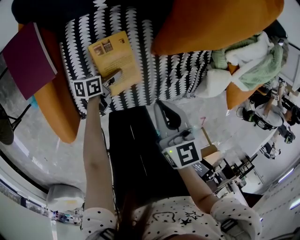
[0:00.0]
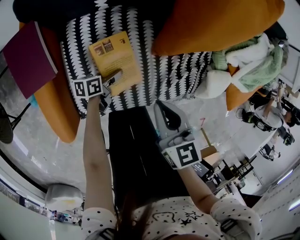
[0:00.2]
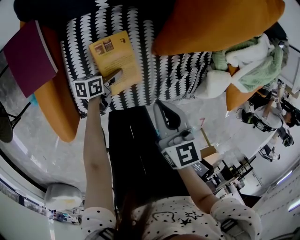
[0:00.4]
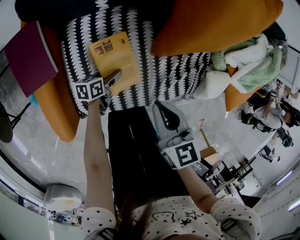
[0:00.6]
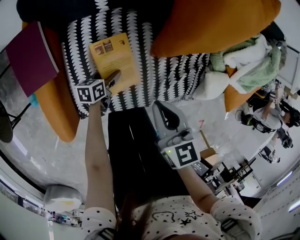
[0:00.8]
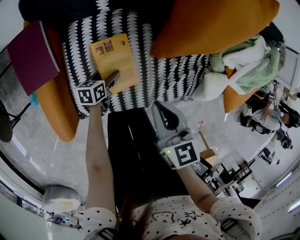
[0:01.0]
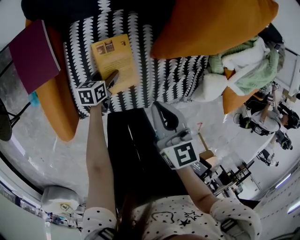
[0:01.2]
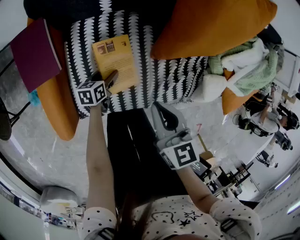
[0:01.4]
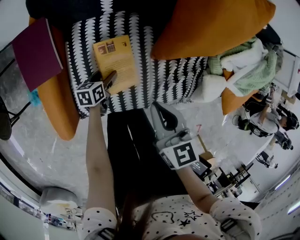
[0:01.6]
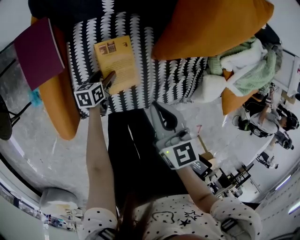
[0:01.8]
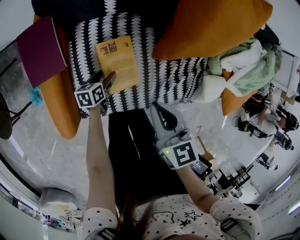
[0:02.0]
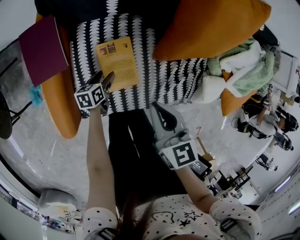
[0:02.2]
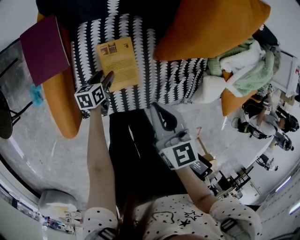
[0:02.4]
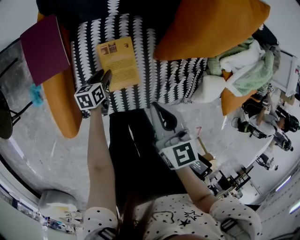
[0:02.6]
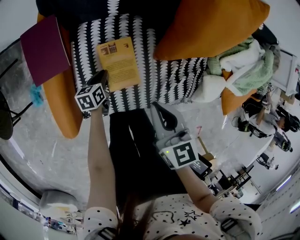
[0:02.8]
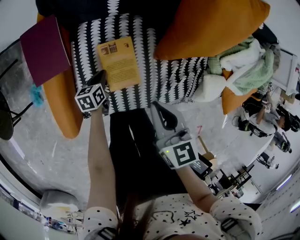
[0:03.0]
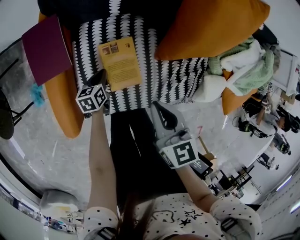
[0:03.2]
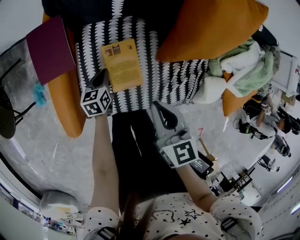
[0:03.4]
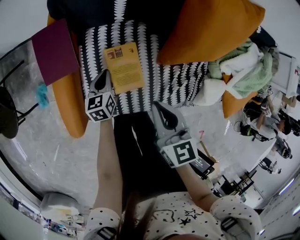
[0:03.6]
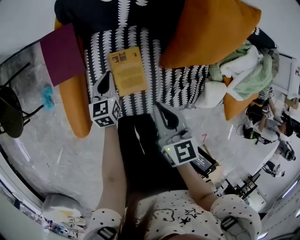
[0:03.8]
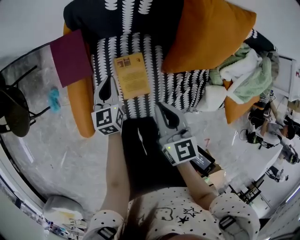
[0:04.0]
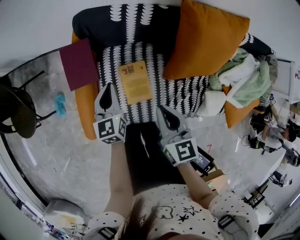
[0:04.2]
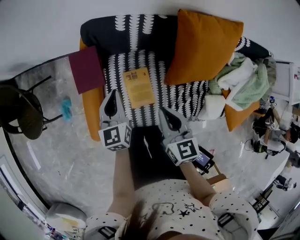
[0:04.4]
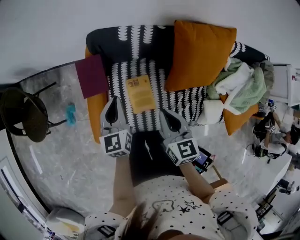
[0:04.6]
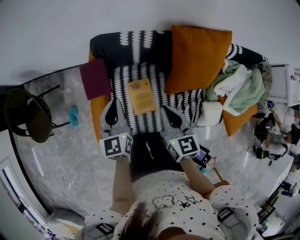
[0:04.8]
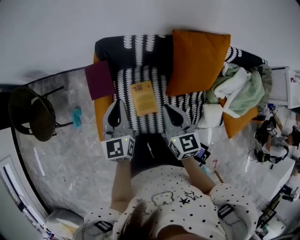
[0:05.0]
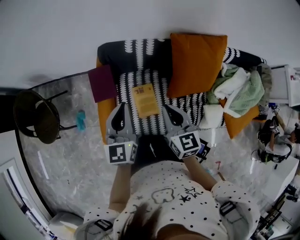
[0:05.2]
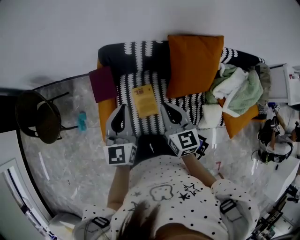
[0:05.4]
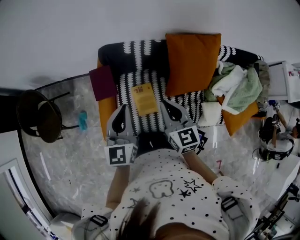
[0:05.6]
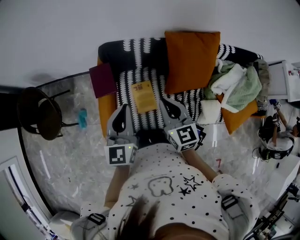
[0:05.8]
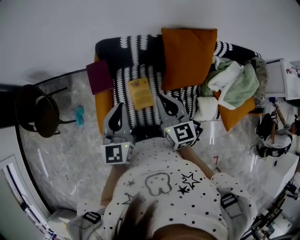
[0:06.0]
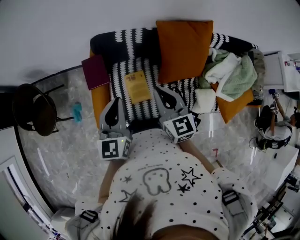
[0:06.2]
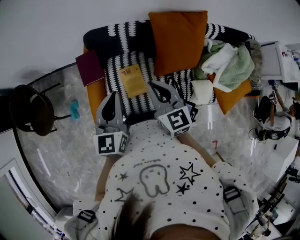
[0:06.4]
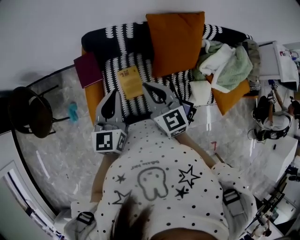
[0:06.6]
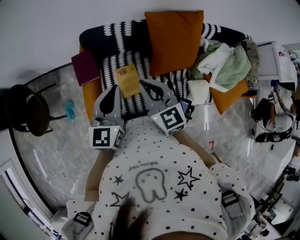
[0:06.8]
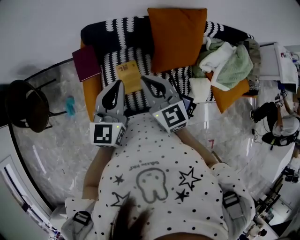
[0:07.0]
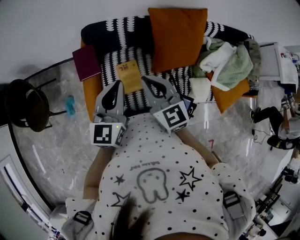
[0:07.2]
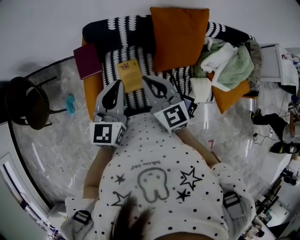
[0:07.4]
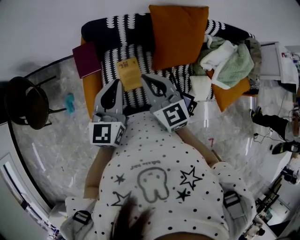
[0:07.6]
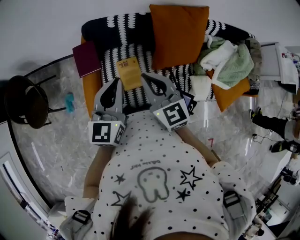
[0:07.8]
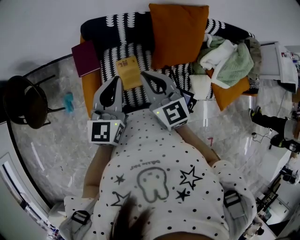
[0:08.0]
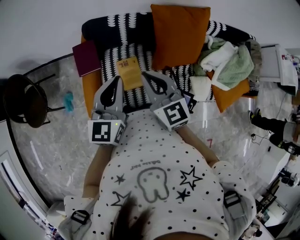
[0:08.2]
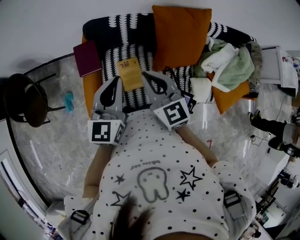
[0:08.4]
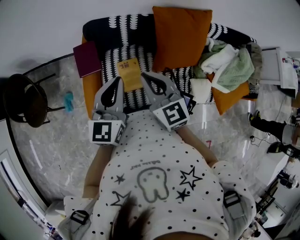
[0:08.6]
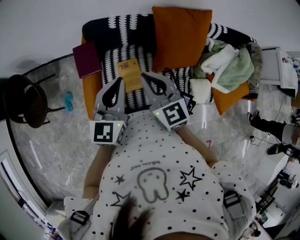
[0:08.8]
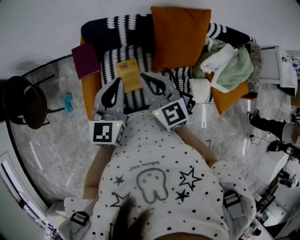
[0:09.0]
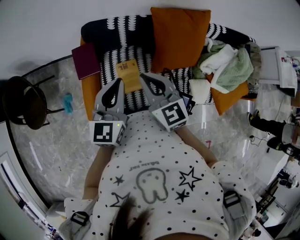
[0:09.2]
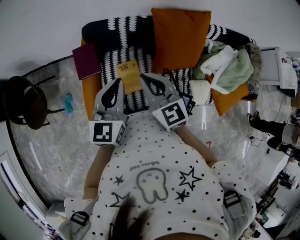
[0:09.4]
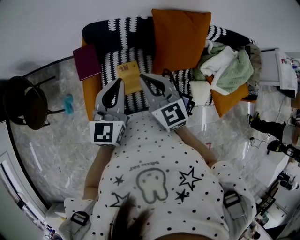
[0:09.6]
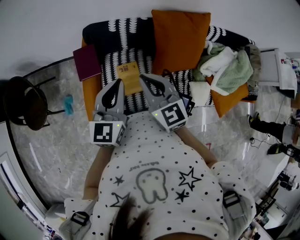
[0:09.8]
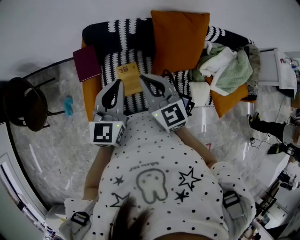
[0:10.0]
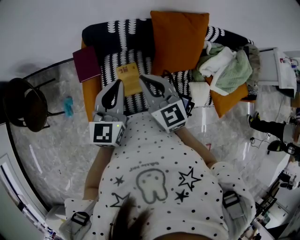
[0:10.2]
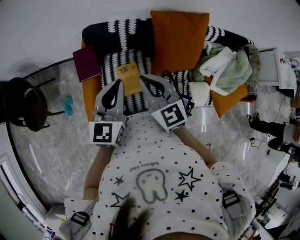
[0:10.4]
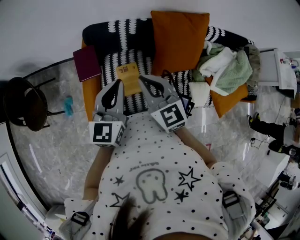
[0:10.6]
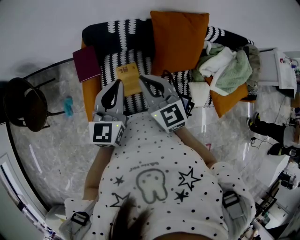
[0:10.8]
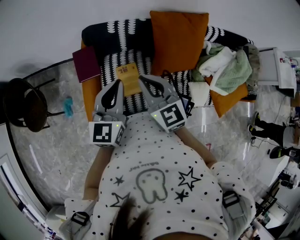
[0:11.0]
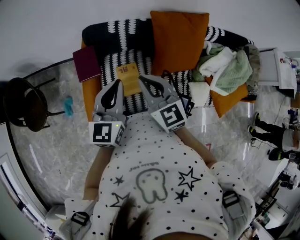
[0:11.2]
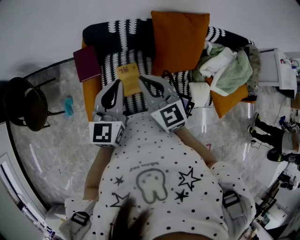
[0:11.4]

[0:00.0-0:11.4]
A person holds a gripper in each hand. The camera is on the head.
0:00.0 to 0:01.4: The left gripper rotates approximately 20 degrees, and opens its fingers.
0:01.4 to 0:02.8: The left gripper closes.
0:02.8 to 0:04.2: The right gripper moves upward, approximately 10 cm. Meanwhile the left gripper heads upward, covering approximately 25 cm, and changes its angle by about 40 degrees.
0:04.2 to 0:05.6: The left gripper moves upward, some 25 cm, and turns by about 20 degrees; the right gripper heads upward, covering roughly 15 cm.
0:05.6 to 0:07.2: The left gripper moves some 5 cm.
0:07.2 to 0:08.6: Both grippers stay put.
0:08.6 to 0:11.4: The two grippers keep their place.

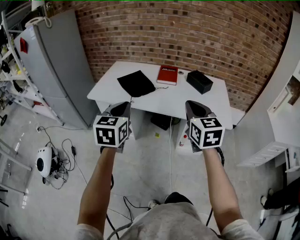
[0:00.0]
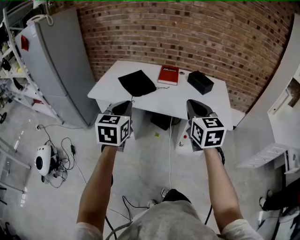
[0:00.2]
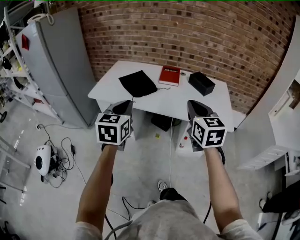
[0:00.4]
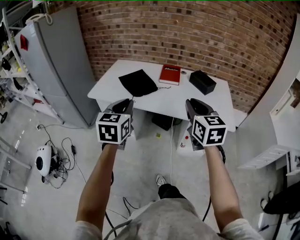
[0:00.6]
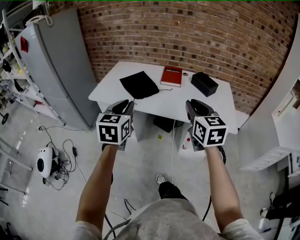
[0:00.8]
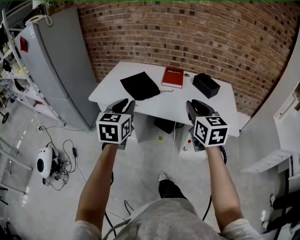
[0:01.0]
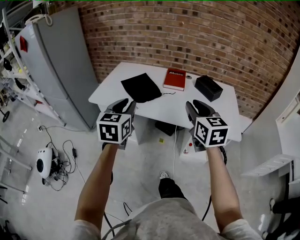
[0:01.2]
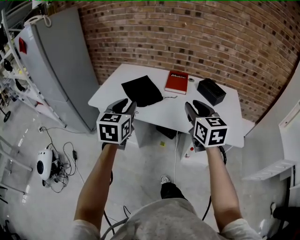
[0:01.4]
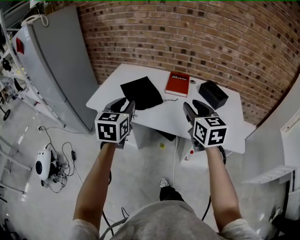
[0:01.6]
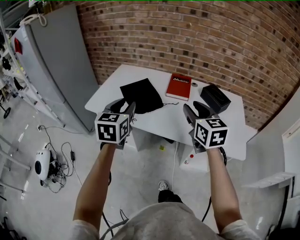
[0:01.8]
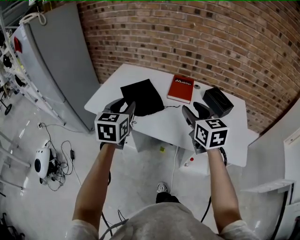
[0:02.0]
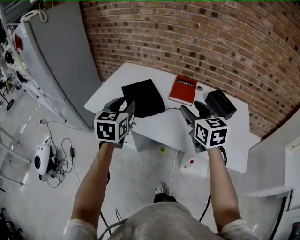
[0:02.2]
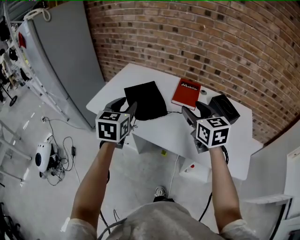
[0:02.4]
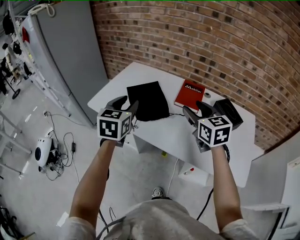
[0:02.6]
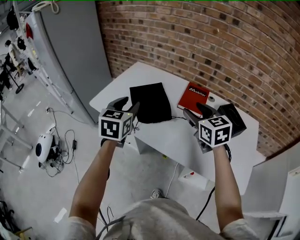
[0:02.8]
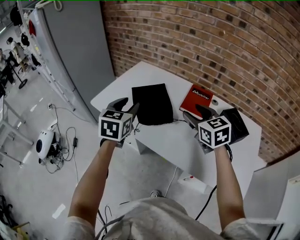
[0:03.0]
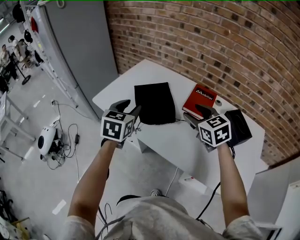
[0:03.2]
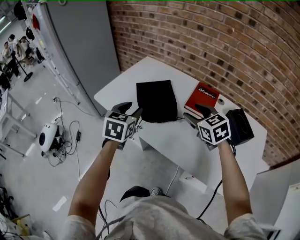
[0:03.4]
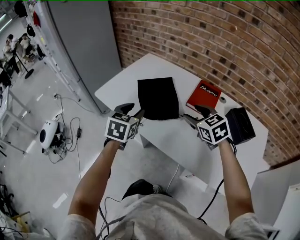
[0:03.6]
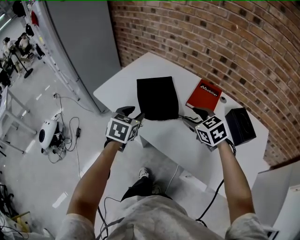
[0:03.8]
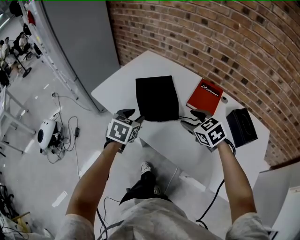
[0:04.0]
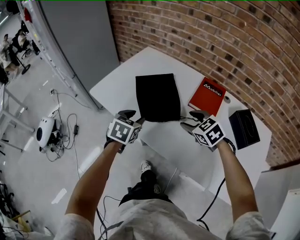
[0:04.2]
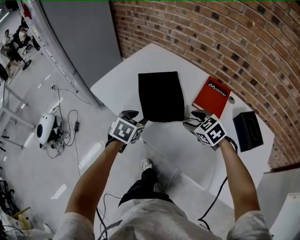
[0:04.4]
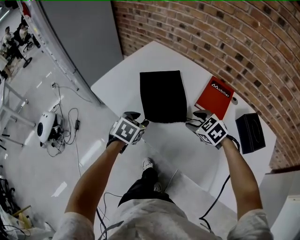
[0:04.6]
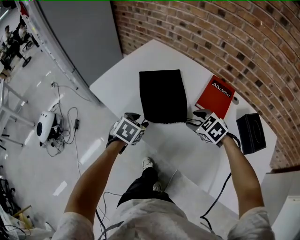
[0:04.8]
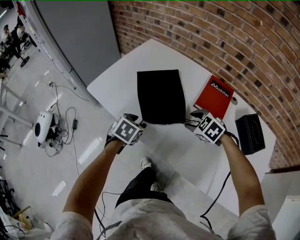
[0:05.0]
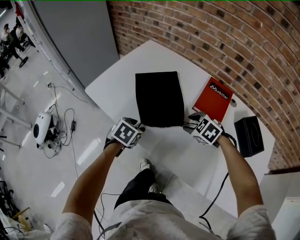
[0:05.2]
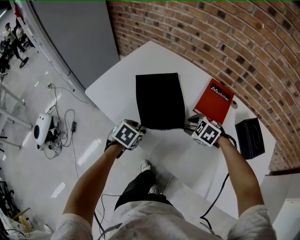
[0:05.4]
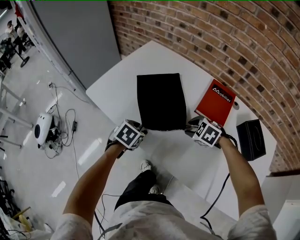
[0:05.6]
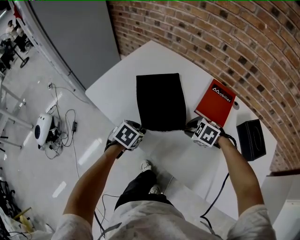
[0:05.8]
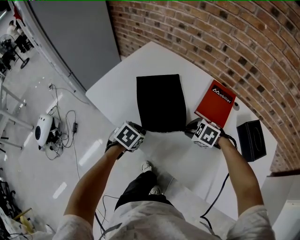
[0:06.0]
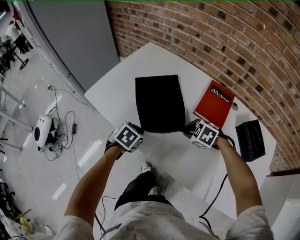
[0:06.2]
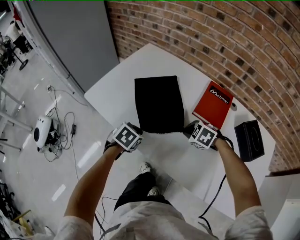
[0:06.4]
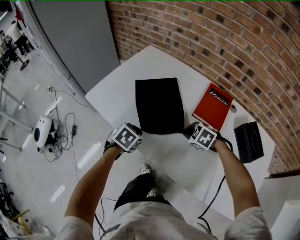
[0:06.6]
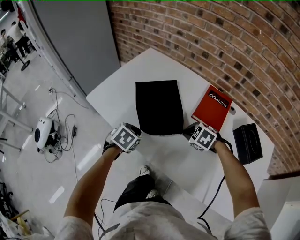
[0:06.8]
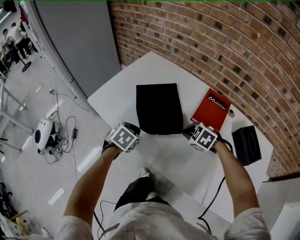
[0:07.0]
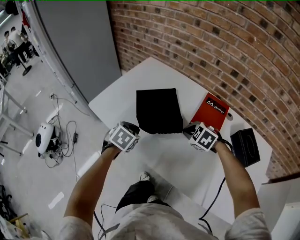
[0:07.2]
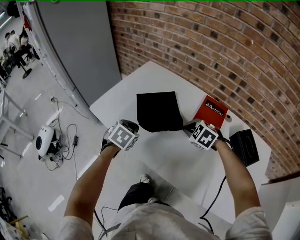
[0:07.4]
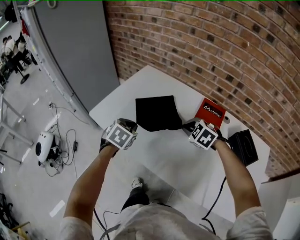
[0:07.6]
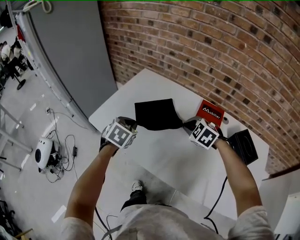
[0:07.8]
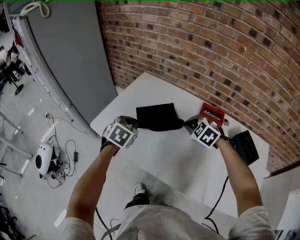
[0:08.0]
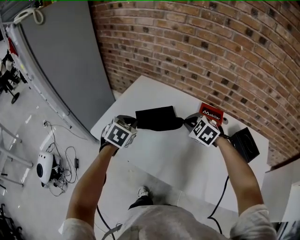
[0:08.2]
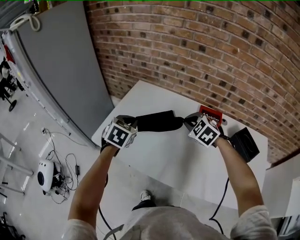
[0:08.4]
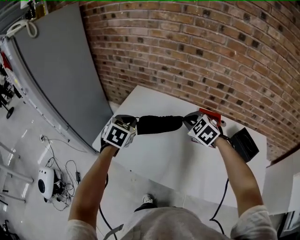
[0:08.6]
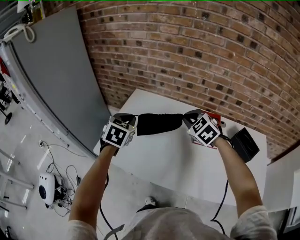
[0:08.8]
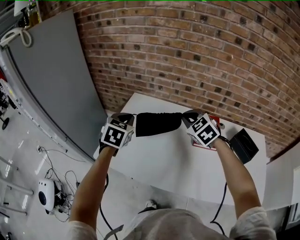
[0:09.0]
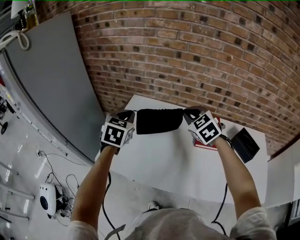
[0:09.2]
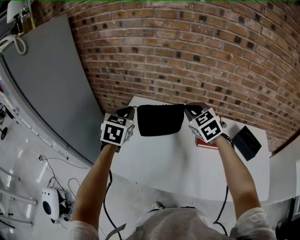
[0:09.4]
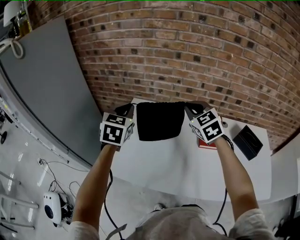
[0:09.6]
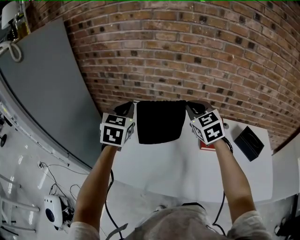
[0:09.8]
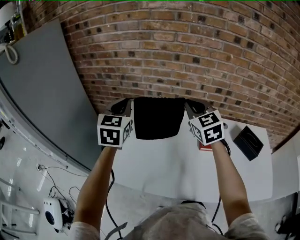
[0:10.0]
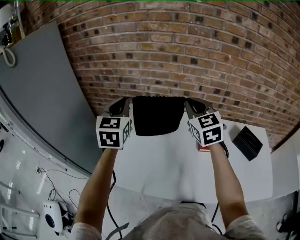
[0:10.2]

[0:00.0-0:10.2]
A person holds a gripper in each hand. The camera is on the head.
0:00.0 to 0:01.4: Both grippers travel together forward, roughly 15 cm. The right gripper opens its fingers, while the left gripper opens.
0:01.4 to 0:03.0: The two grippers go approximately 20 cm forward. The right gripper turns by approximately 30 degrees, and opens.
0:03.0 to 0:04.4: Both grippers travel together downward, some 20 cm. The right gripper swivels roughly 30 degrees; the left gripper rotates approximately 30 degrees.
0:04.4 to 0:05.8: Both grippers travel together downward, some 10 cm. The right gripper turns by some 20 degrees, and closes.
0:05.8 to 0:07.2: The grippers both shift upward by approximately 5 cm. The right gripper closes, while the left gripper closes.
0:07.2 to 0:08.8: The grippers both shift upward and forward by approximately 25 cm. The right gripper changes its angle by about 30 degrees. The left gripper swivels approximately 20 degrees.
0:08.8 to 0:10.2: The two grippers go some 15 cm upward and forward. The right gripper changes its angle by approximately 40 degrees. Meanwhile the left gripper turns by some 30 degrees.

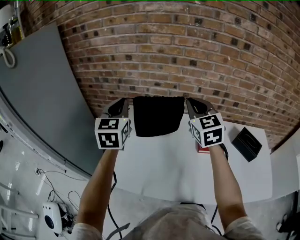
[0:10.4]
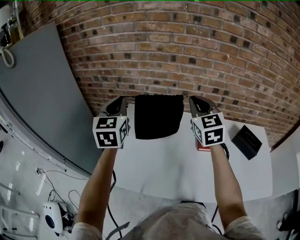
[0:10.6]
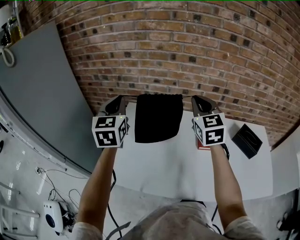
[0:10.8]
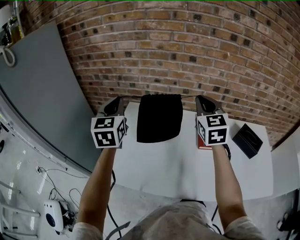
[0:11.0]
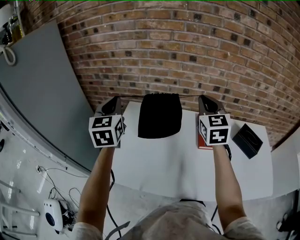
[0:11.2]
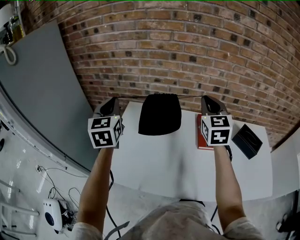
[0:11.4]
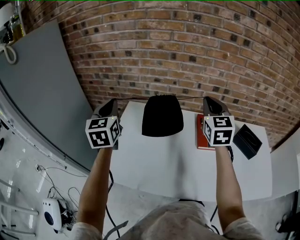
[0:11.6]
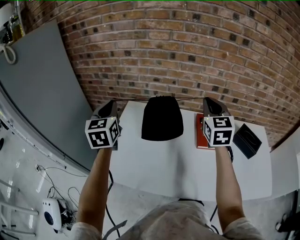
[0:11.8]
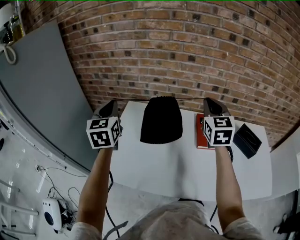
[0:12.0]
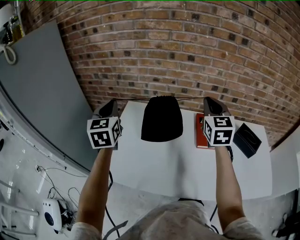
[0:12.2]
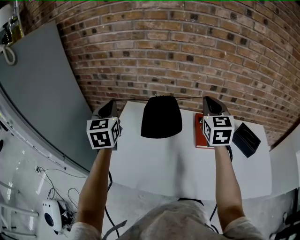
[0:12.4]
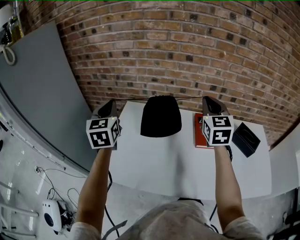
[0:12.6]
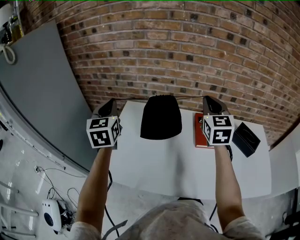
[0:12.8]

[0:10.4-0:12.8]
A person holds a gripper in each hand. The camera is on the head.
0:10.4 to 0:11.6: The right gripper travels to the right by approximately 10 cm.
0:11.6 to 0:12.8: Neither gripper changes place.
